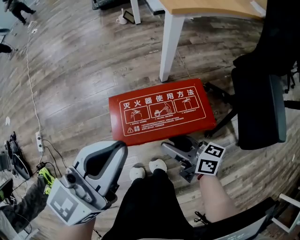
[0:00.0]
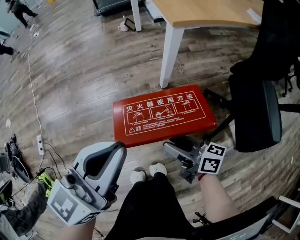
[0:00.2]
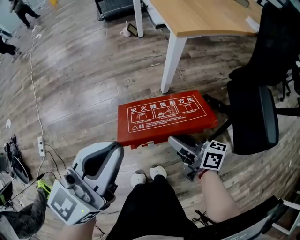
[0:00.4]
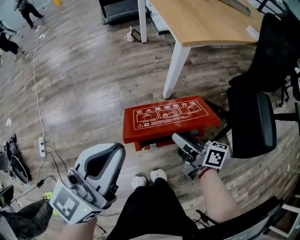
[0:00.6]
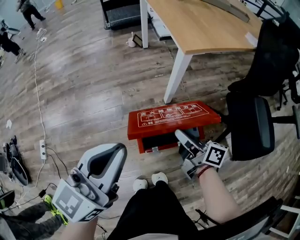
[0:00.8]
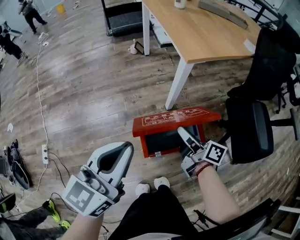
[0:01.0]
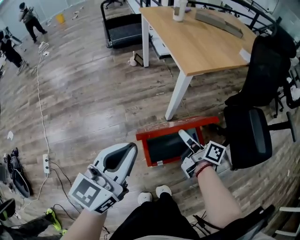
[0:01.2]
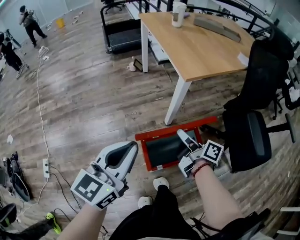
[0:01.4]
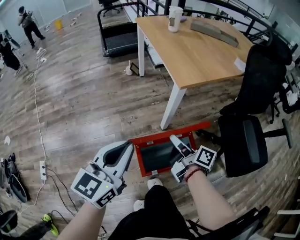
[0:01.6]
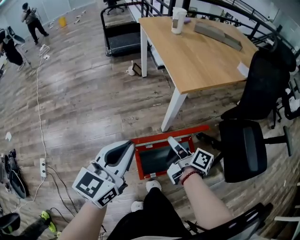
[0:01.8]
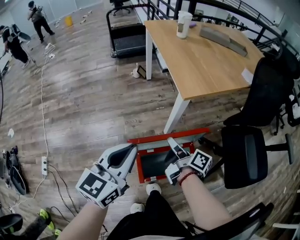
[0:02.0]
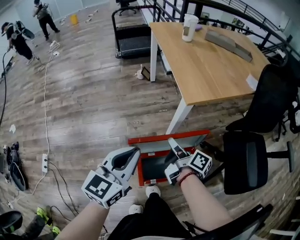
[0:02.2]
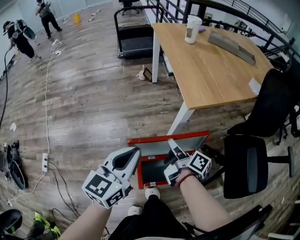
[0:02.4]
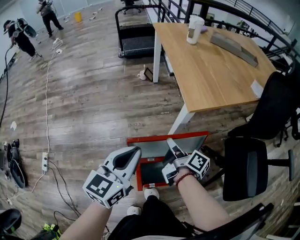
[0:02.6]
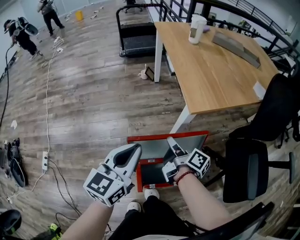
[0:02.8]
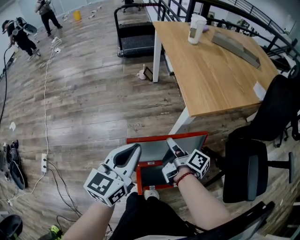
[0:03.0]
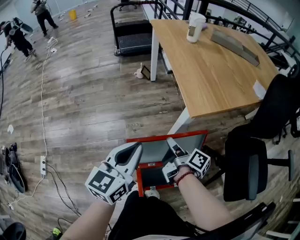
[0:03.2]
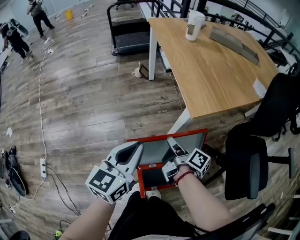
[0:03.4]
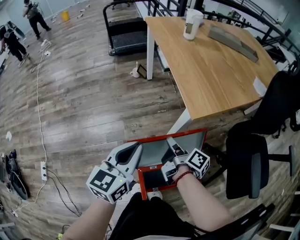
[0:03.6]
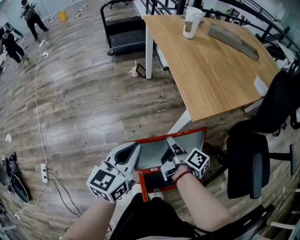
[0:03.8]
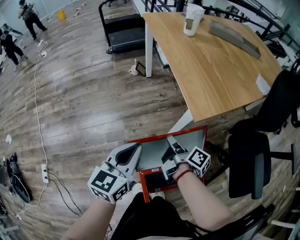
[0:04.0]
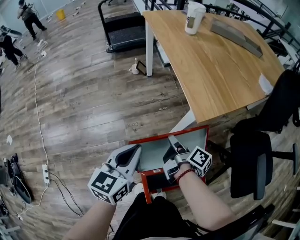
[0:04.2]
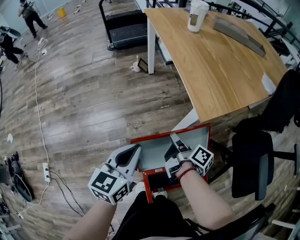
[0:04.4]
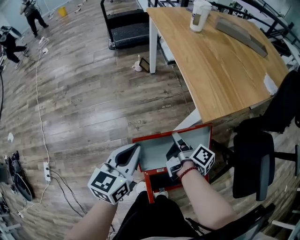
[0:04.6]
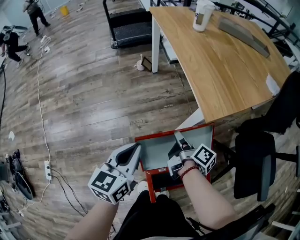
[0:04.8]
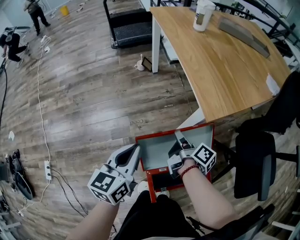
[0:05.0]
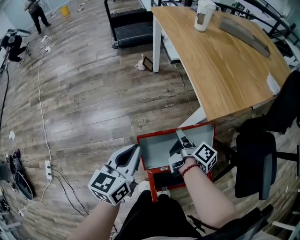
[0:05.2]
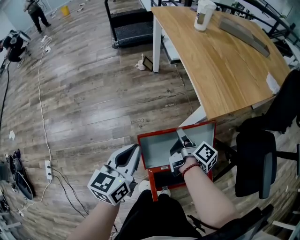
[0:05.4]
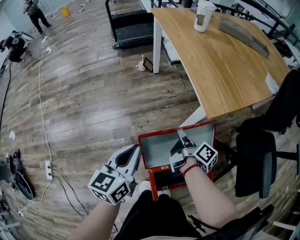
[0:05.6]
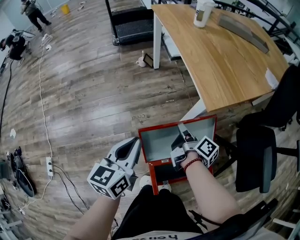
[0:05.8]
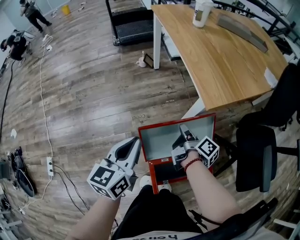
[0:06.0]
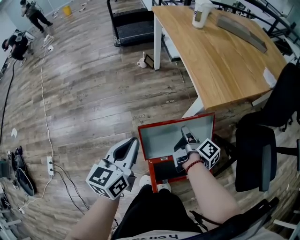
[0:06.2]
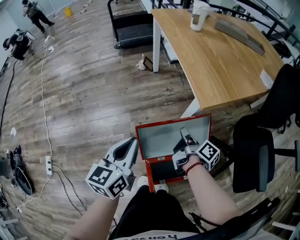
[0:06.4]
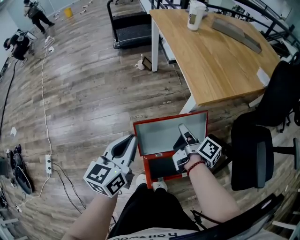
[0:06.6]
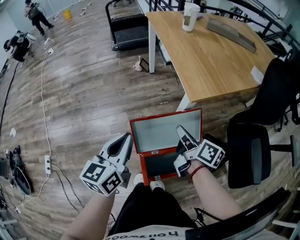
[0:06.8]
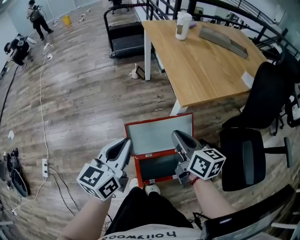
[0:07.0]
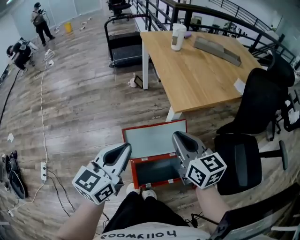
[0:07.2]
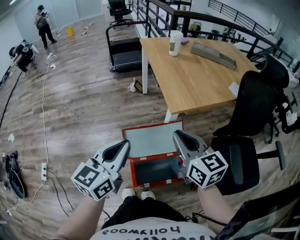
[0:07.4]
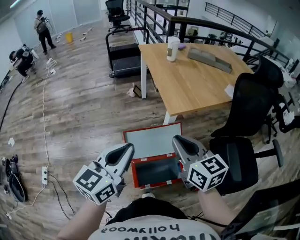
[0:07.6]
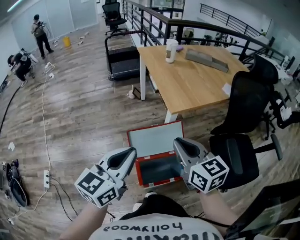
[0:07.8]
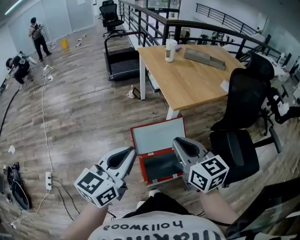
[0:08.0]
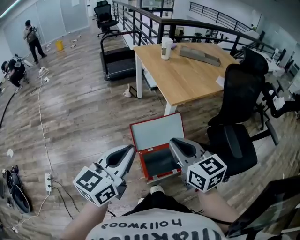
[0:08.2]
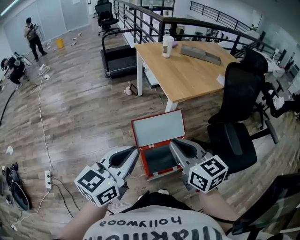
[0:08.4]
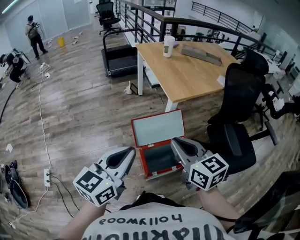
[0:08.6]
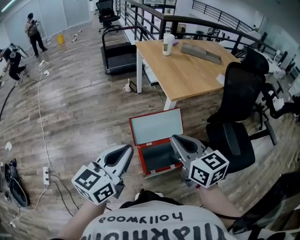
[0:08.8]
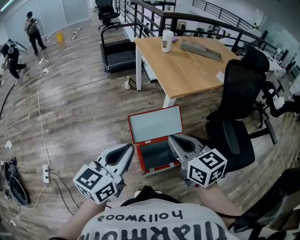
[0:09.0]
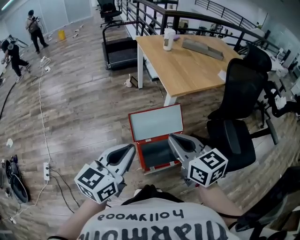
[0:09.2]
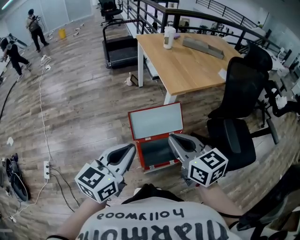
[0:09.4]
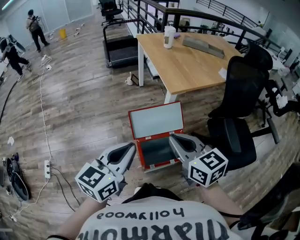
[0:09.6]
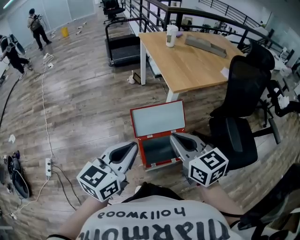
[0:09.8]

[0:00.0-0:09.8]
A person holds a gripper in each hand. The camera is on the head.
0:00.0 to 0:01.4: The left gripper travels to the left, upward and forward by some 15 cm, while the right gripper is displaced forward and upward by some 20 cm, changes its angle by about 30 degrees, and closes up.
0:01.4 to 0:02.8: Both grippers travel together forward, roughly 10 cm.
0:02.8 to 0:04.2: The right gripper shifts approximately 5 cm forward. Meanwhile the left gripper goes some 10 cm forward and downward.
0:04.2 to 0:05.6: The grippers make only small movements.
0:05.6 to 0:07.0: The right gripper shifts about 20 cm upward and backward, and rolls counterclockwise, seen from behind, by roughly 50 degrees. The left gripper goes roughly 10 cm upward and backward.
0:07.0 to 0:08.4: The grippers both shift backward and upward by some 25 cm. The right gripper swivels roughly 30 degrees.
0:08.4 to 0:09.8: There are only small adjustments of the grippers.

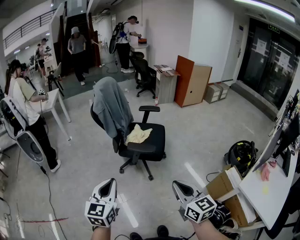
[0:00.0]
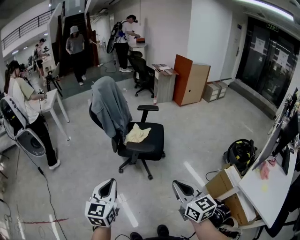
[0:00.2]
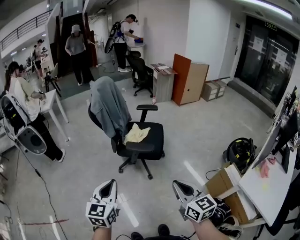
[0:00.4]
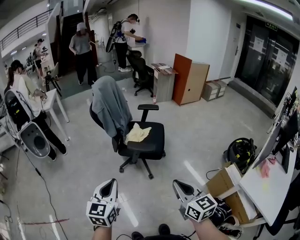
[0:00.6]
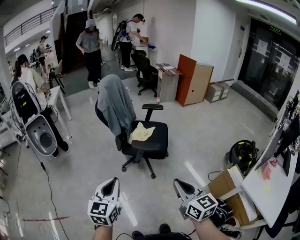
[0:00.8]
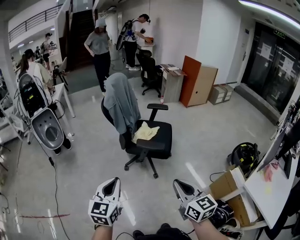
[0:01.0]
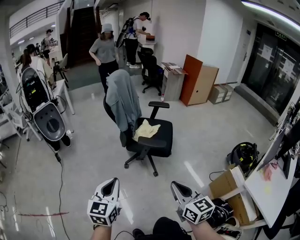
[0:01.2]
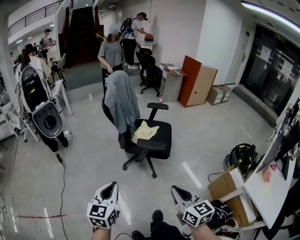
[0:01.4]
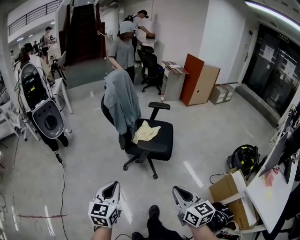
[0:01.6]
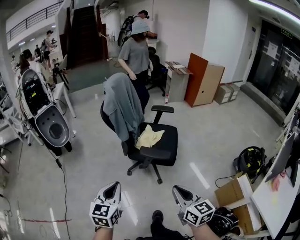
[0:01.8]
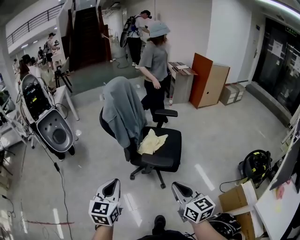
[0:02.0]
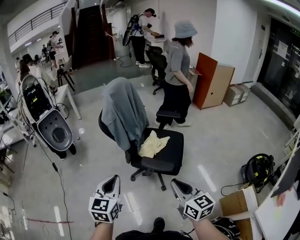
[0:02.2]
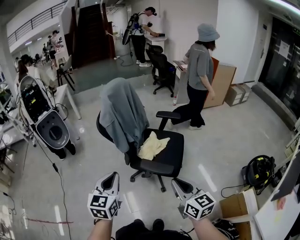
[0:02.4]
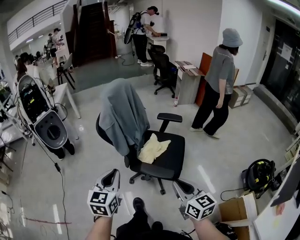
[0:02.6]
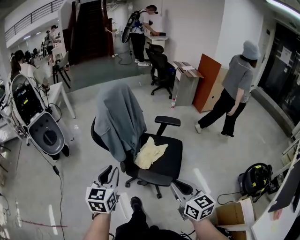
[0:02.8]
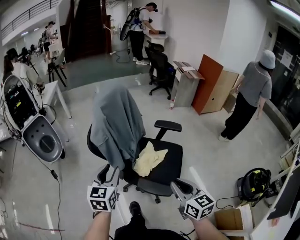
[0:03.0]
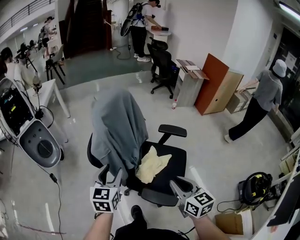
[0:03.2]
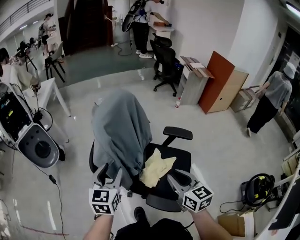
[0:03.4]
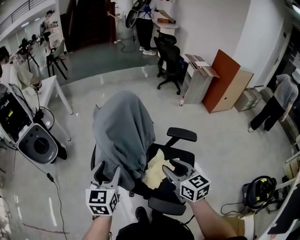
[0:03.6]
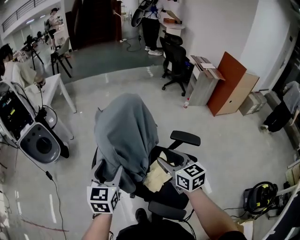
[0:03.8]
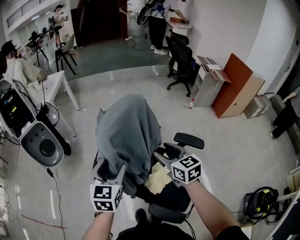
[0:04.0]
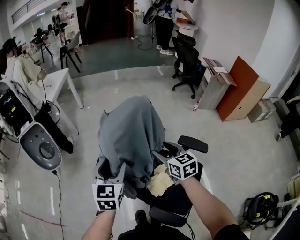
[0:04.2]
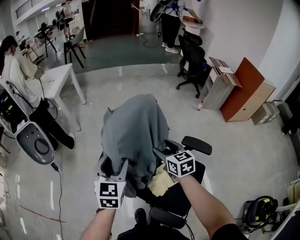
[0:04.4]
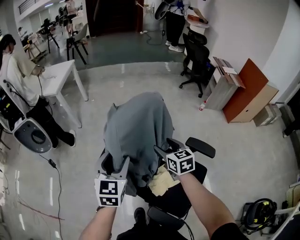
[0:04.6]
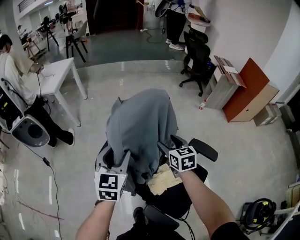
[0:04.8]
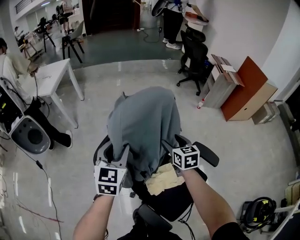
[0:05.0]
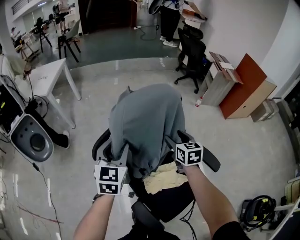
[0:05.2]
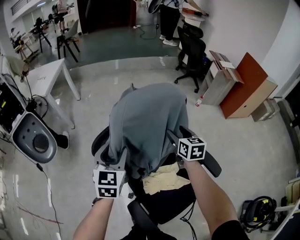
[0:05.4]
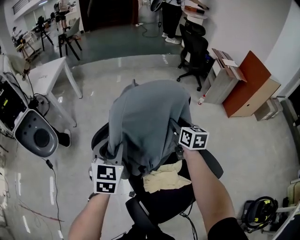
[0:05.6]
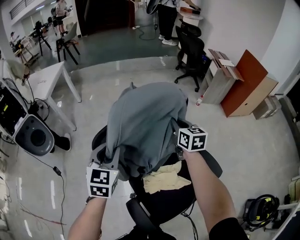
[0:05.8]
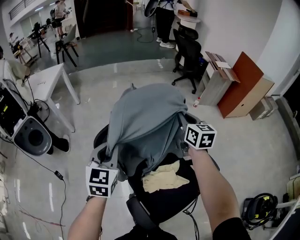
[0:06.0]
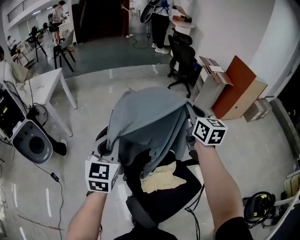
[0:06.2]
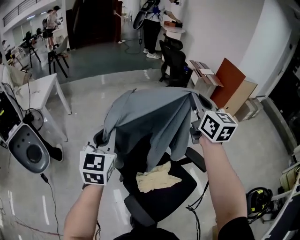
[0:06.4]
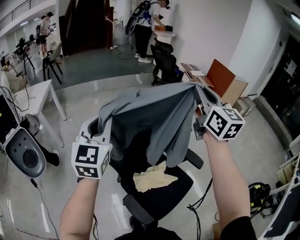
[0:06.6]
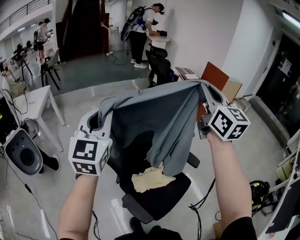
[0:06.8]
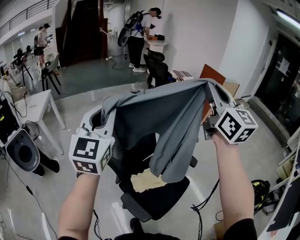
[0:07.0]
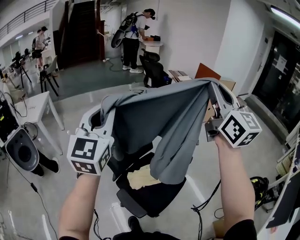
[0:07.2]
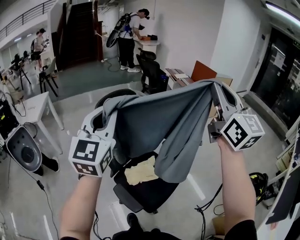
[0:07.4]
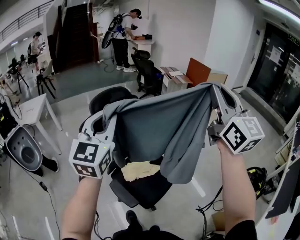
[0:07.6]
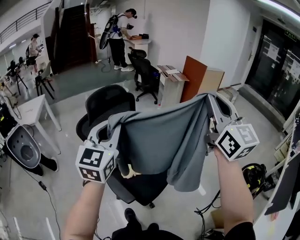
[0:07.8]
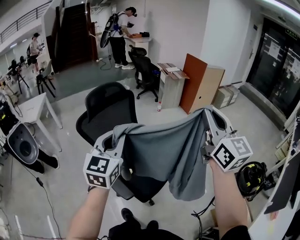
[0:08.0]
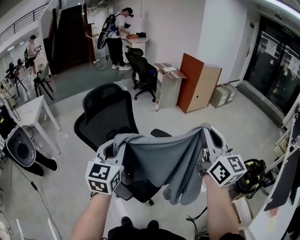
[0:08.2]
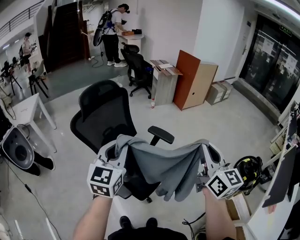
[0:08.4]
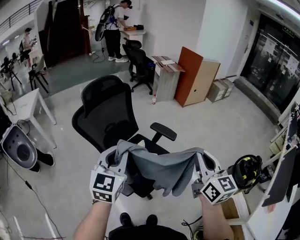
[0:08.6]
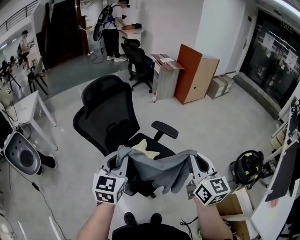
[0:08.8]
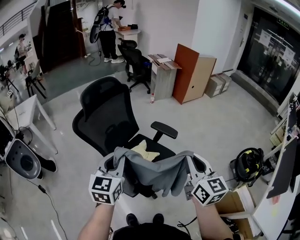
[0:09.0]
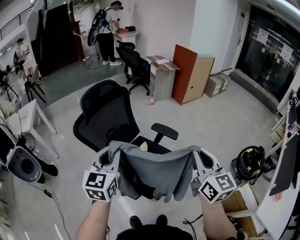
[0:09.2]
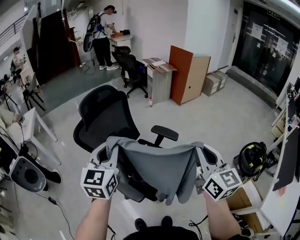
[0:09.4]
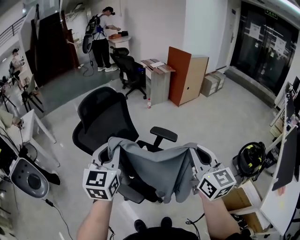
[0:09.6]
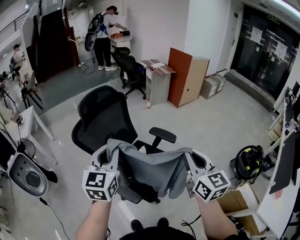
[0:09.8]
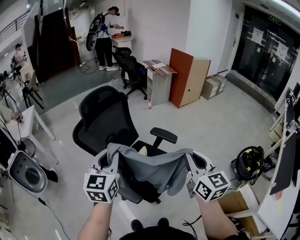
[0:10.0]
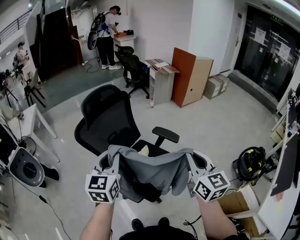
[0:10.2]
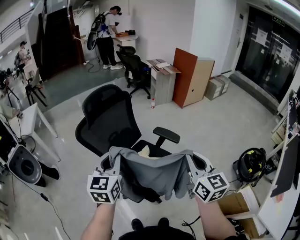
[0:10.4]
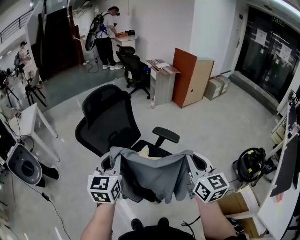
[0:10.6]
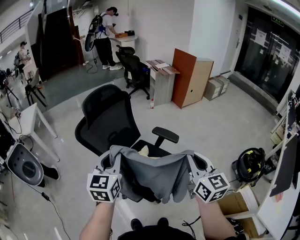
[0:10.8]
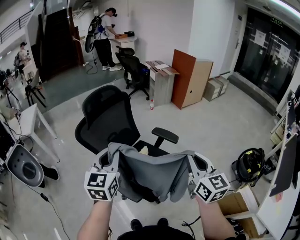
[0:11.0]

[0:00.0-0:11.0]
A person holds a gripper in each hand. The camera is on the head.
0:00.0 to 0:01.6: The left gripper travels to the left and downward by approximately 10 cm; the right gripper heads to the left, covering some 10 cm.
0:01.6 to 0:03.2: Both grippers are carried forward, approximately 50 cm. The left gripper opens.
0:03.2 to 0:04.8: The left gripper shifts about 25 cm forward; the right gripper goes some 40 cm forward, and opens.
0:04.8 to 0:06.2: The right gripper goes some 25 cm upward and to the right, swivels some 30 degrees, and closes. The left gripper travels upward by roughly 5 cm, and closes up.
0:06.2 to 0:07.8: The right gripper shifts about 60 cm backward, upward and to the right, and swivels roughly 30 degrees. Meanwhile the left gripper shifts about 40 cm backward, to the right and upward, and changes its angle by approximately 20 degrees.
0:07.8 to 0:09.4: The left gripper moves downward, about 5 cm. The right gripper moves downward and backward, some 20 cm, and changes its angle by roughly 20 degrees.
0:09.4 to 0:11.0: There are only small adjustments of the grippers.

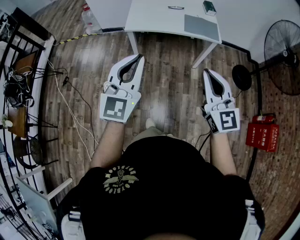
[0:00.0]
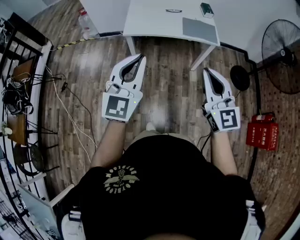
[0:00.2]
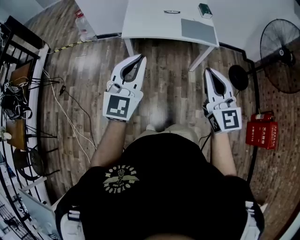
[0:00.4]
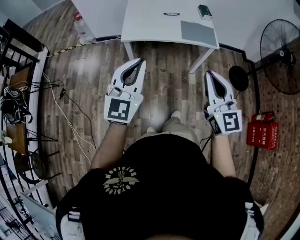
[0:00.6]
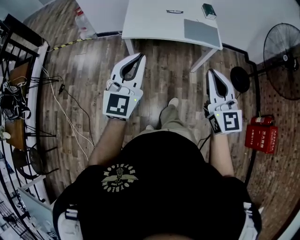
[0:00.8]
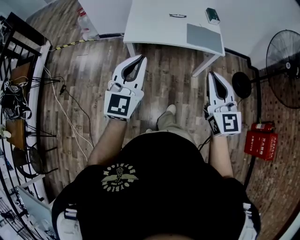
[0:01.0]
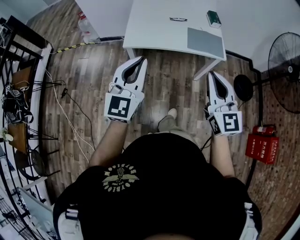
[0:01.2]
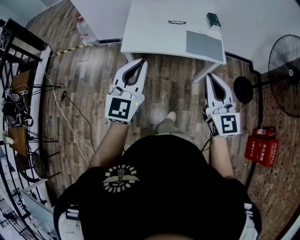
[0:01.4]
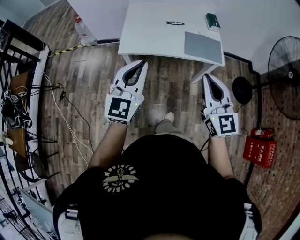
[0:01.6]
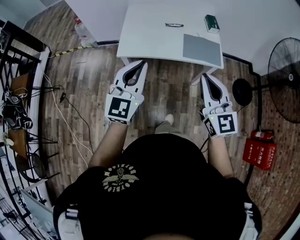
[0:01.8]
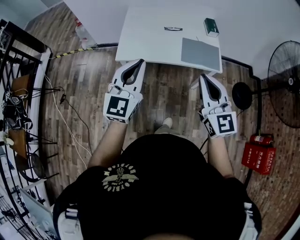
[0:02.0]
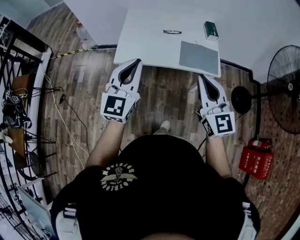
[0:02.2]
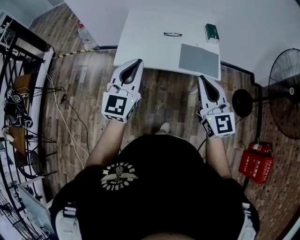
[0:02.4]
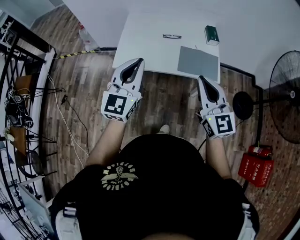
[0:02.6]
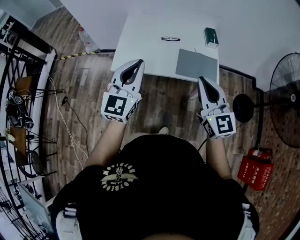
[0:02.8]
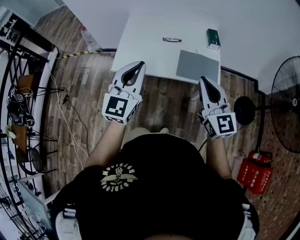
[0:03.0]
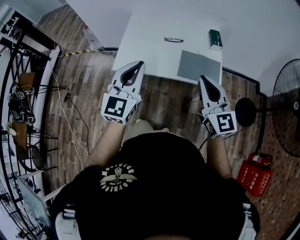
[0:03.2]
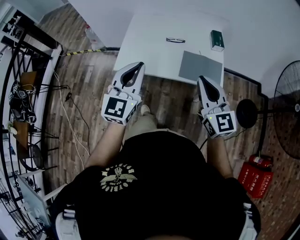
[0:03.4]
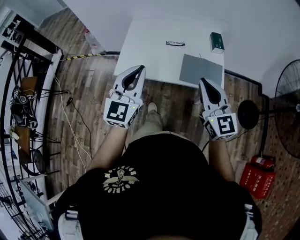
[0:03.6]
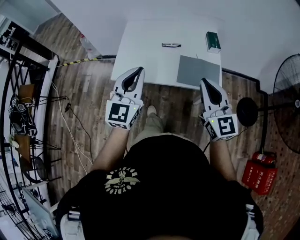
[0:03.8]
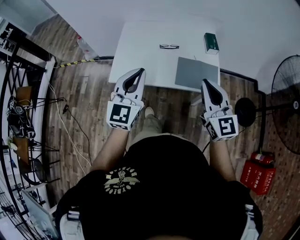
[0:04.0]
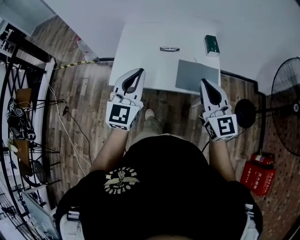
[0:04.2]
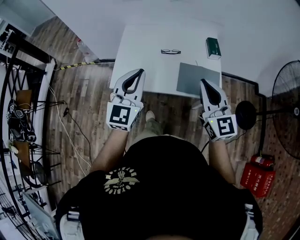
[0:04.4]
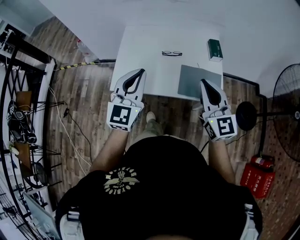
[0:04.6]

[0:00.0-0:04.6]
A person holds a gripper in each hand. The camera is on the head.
0:00.0 to 0:01.6: The grippers both shift forward by some 25 cm.
0:01.6 to 0:03.0: Both grippers move forward and to the right, about 15 cm.
0:03.0 to 0:04.6: The two grippers go some 10 cm forward.
